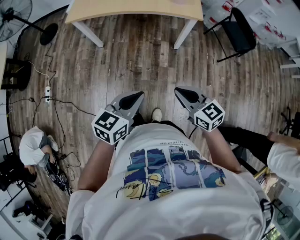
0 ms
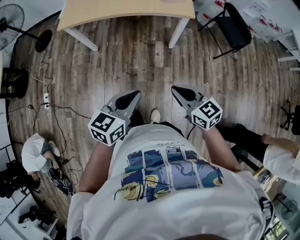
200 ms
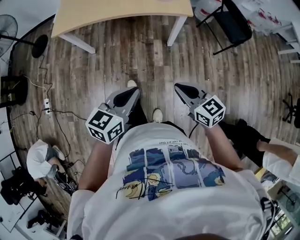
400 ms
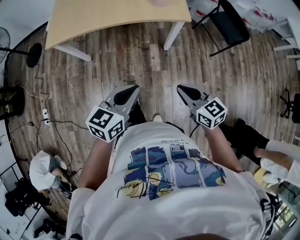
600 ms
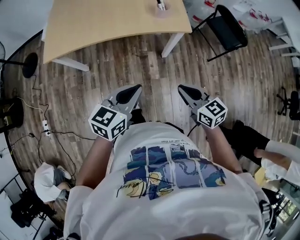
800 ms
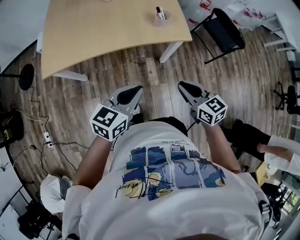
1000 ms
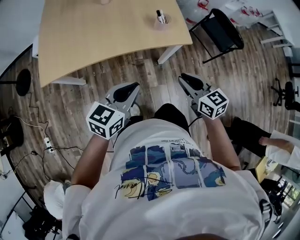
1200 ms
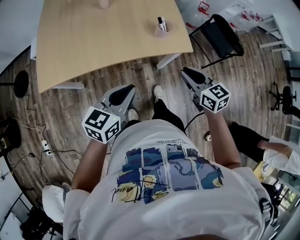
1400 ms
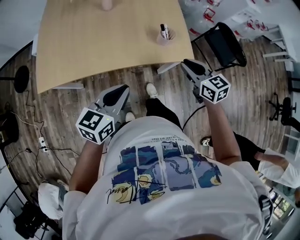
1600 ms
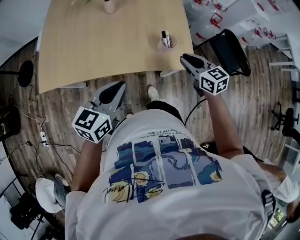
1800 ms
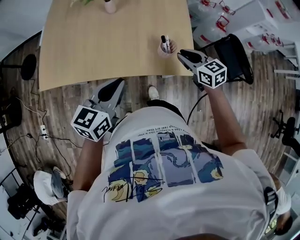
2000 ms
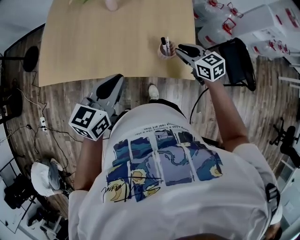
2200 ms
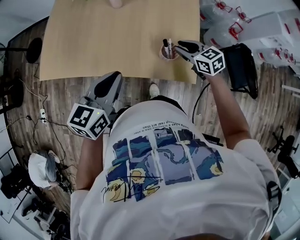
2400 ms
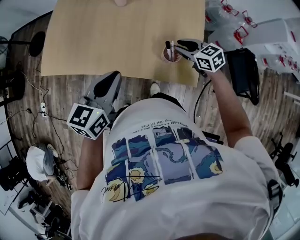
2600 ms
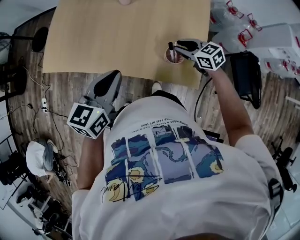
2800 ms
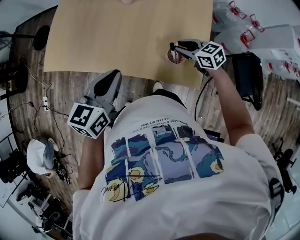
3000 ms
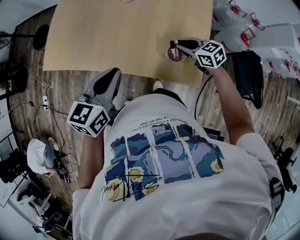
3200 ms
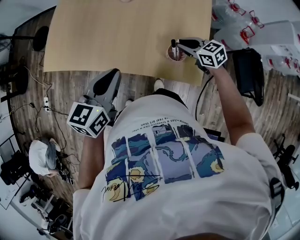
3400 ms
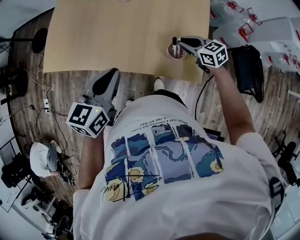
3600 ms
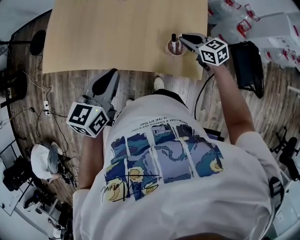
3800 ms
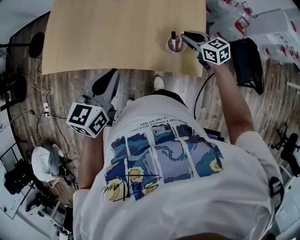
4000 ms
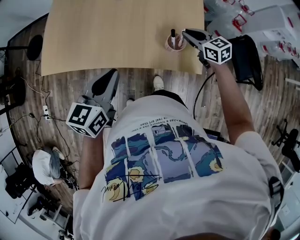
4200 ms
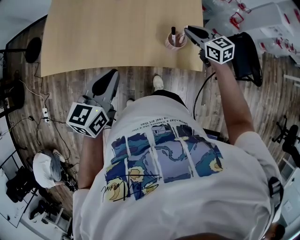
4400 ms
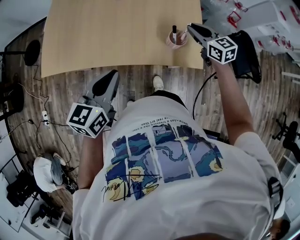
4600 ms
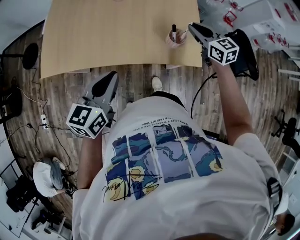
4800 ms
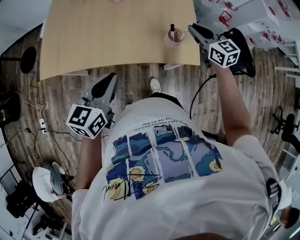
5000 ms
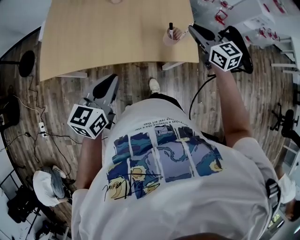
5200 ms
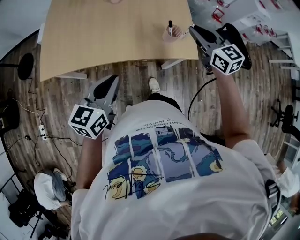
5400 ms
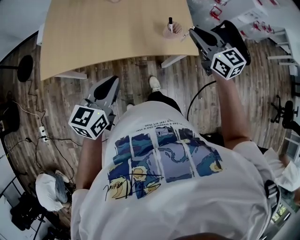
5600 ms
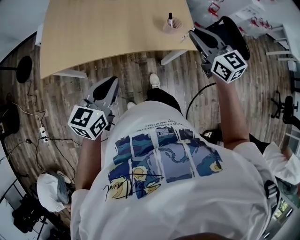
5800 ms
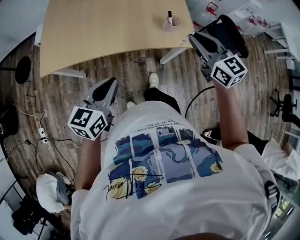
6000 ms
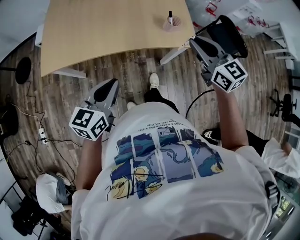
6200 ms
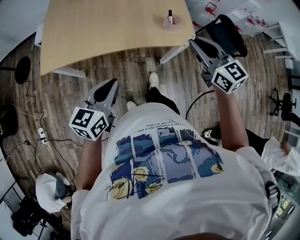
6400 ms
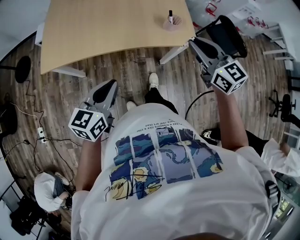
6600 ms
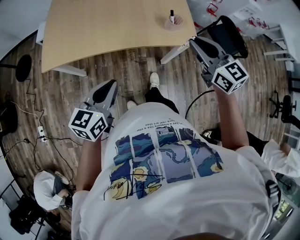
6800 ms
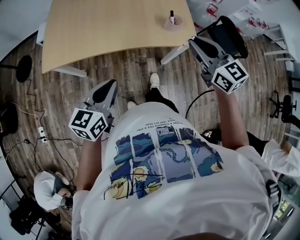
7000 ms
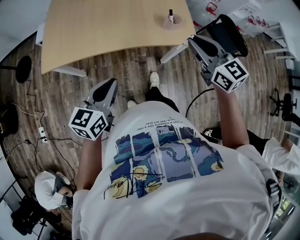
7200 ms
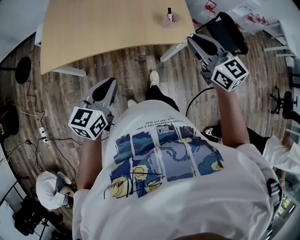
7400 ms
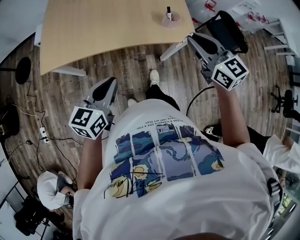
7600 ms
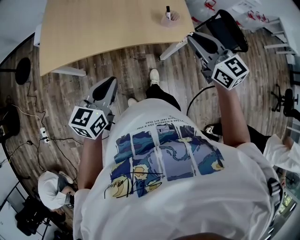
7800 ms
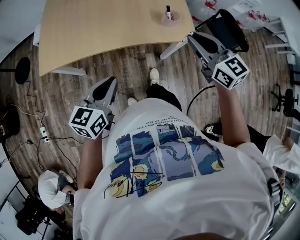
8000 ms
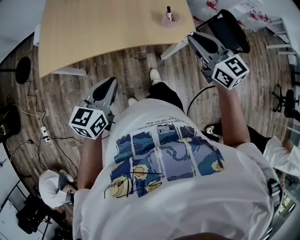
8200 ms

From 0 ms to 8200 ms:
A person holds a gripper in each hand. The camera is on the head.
From 0 ms to 1600 ms: The pair of grippers is taken forward, approximately 50 cm.
From 1600 ms to 3200 ms: The right gripper moves roughly 25 cm, and rotates approximately 40 degrees, while the left gripper moves approximately 15 cm, and swivels some 30 degrees.
From 3200 ms to 5000 ms: The right gripper heads upward and backward, covering some 15 cm, and rotates some 40 degrees. The left gripper travels to the left and backward by about 10 cm.
From 5000 ms to 6600 ms: The left gripper travels backward and to the left by roughly 15 cm, while the right gripper travels backward and upward by approximately 25 cm.
From 6600 ms to 8200 ms: There are only small adjustments of the grippers.

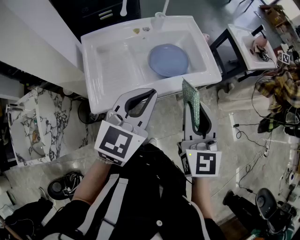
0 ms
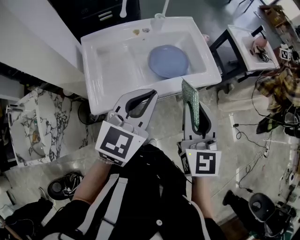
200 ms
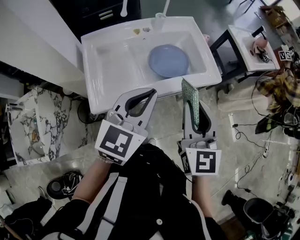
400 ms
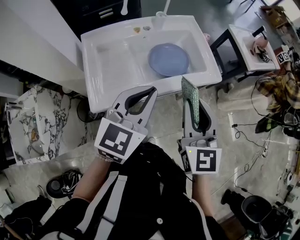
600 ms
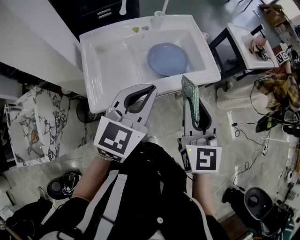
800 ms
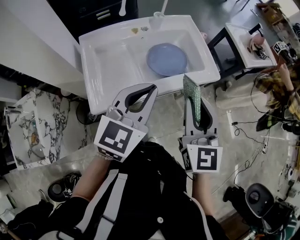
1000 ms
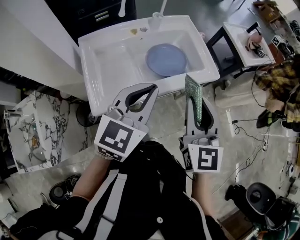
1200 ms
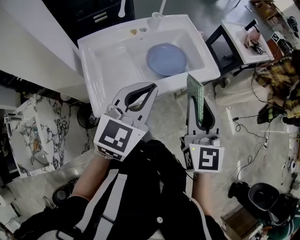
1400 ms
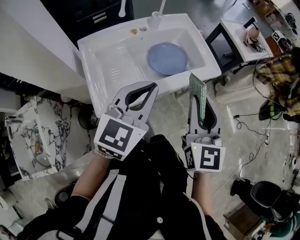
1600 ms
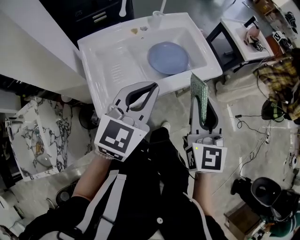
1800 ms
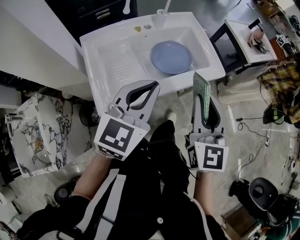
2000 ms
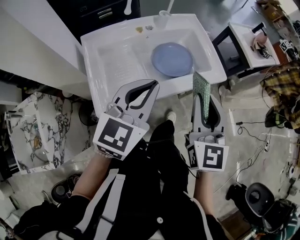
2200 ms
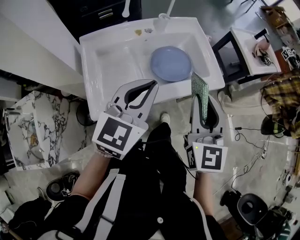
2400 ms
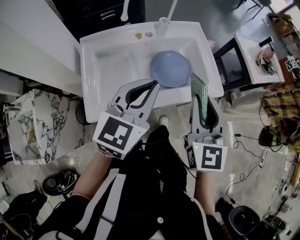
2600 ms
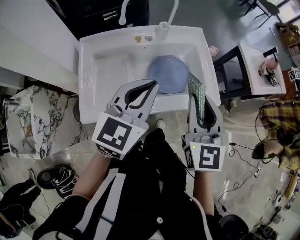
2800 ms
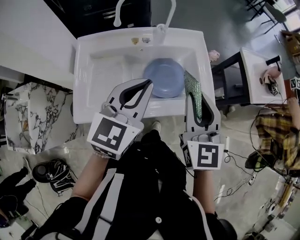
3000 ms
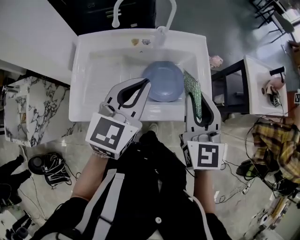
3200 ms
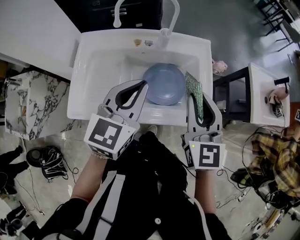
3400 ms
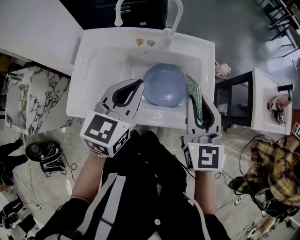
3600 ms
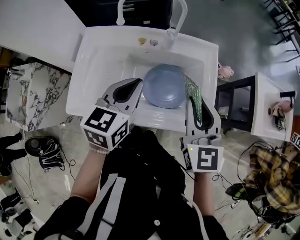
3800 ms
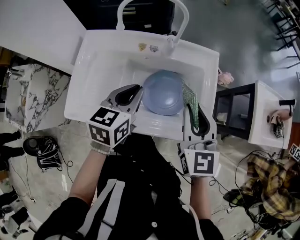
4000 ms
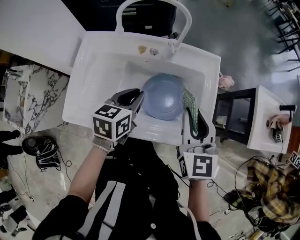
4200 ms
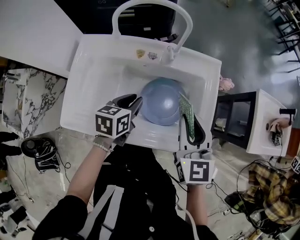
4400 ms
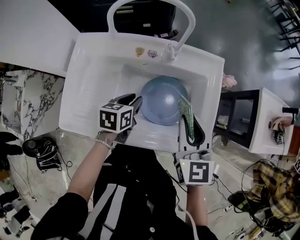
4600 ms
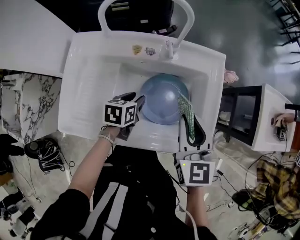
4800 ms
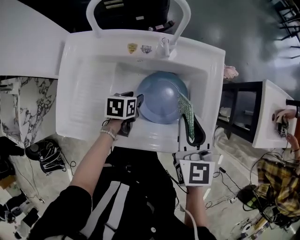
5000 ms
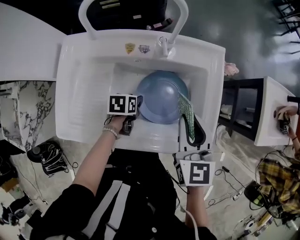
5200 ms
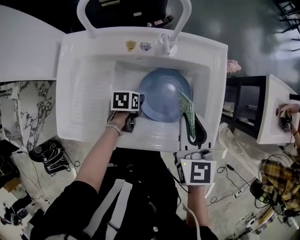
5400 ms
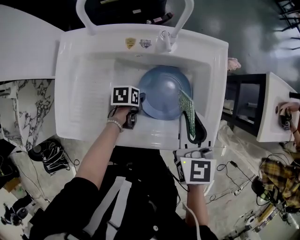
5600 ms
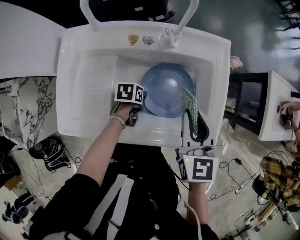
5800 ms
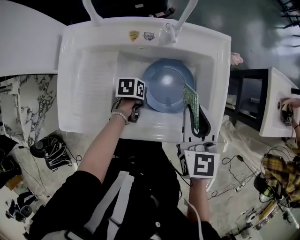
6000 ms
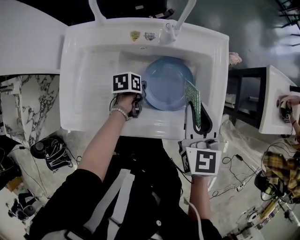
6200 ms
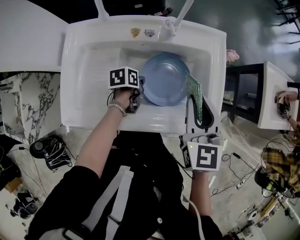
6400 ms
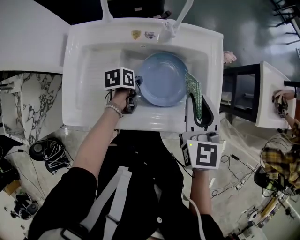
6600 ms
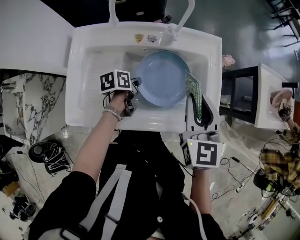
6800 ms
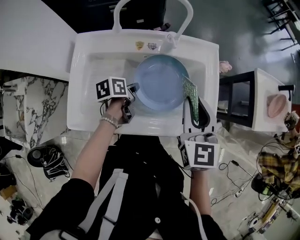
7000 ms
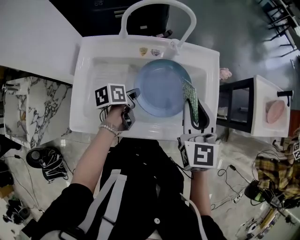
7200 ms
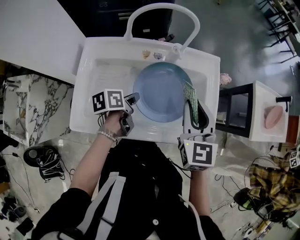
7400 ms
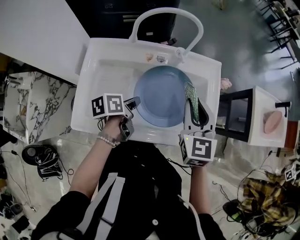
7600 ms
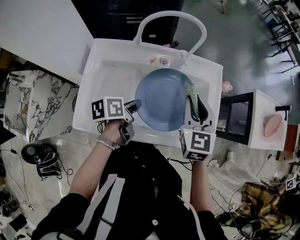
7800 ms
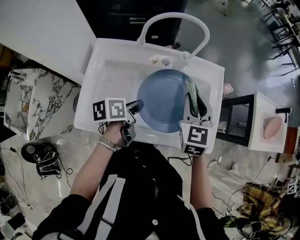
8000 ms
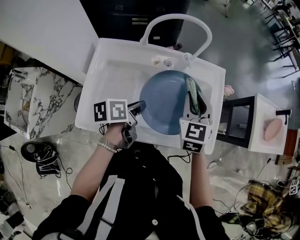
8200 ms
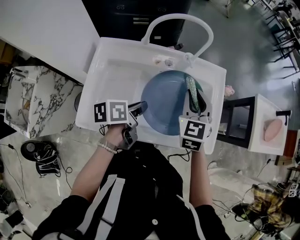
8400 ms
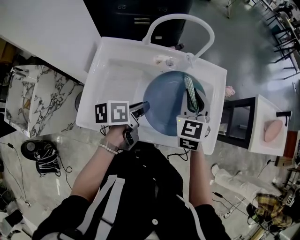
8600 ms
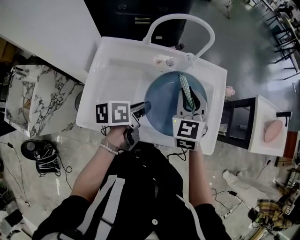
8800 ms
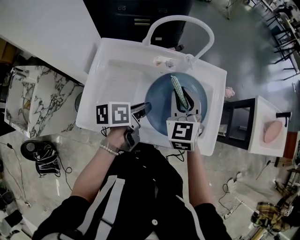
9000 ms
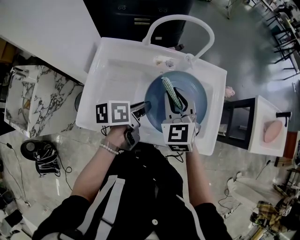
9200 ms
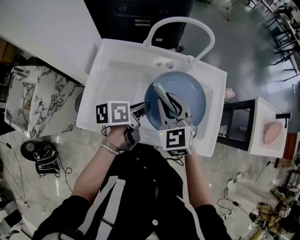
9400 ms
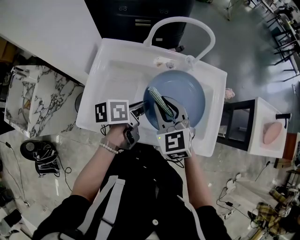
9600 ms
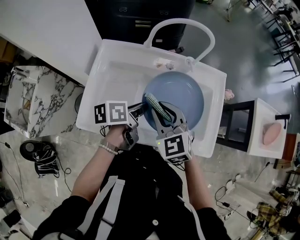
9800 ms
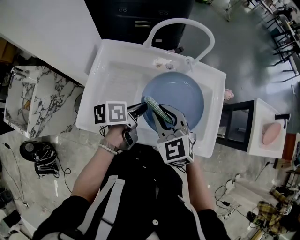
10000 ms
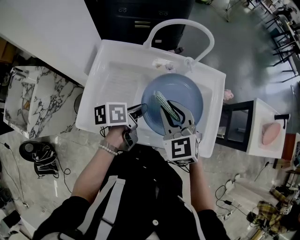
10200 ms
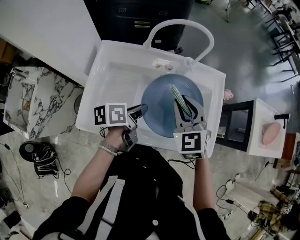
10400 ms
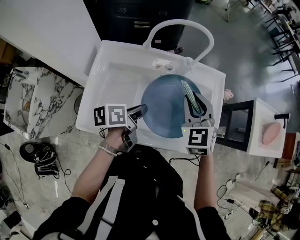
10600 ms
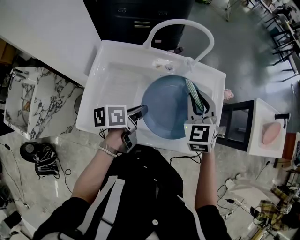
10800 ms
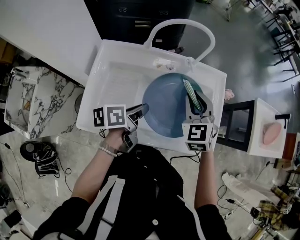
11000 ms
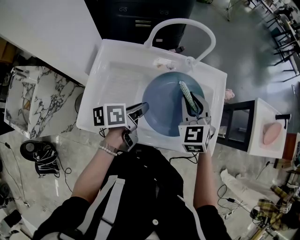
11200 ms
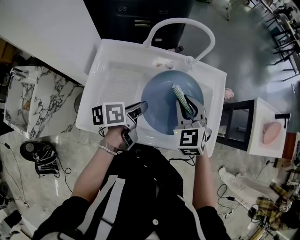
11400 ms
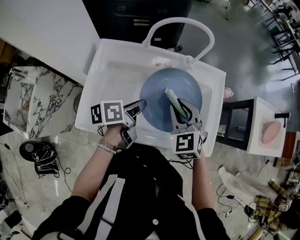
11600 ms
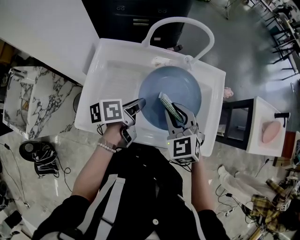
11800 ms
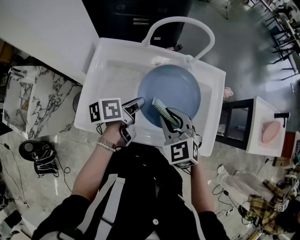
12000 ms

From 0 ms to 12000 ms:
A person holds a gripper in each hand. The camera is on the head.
From 0 ms to 1600 ms: The grippers move only a little.
From 1600 ms to 3000 ms: The grippers both shift forward by some 15 cm. The left gripper rotates some 20 degrees, while the right gripper turns by roughly 20 degrees.
From 3000 ms to 4400 ms: The left gripper moves downward and forward, about 25 cm, and turns by about 50 degrees. The right gripper heads forward and downward, covering approximately 15 cm.
From 4400 ms to 6000 ms: The left gripper is displaced downward by about 20 cm, rotates some 30 degrees, and opens, then closes once more. Meanwhile the right gripper moves downward, roughly 5 cm.
From 6000 ms to 7600 ms: The right gripper goes about 5 cm upward; the left gripper is displaced upward by approximately 20 cm, and turns by roughly 30 degrees.
From 7600 ms to 9000 ms: The right gripper heads to the left, covering some 10 cm. Meanwhile the left gripper heads upward, covering approximately 5 cm.
From 9000 ms to 10400 ms: The right gripper travels backward and back again, some 10 cm each way.
From 10400 ms to 12000 ms: The right gripper shifts approximately 5 cm backward.

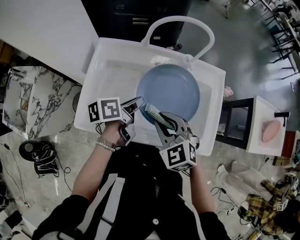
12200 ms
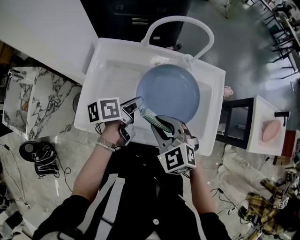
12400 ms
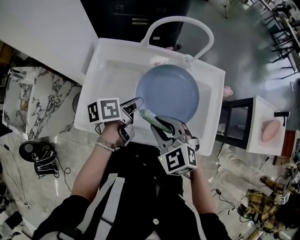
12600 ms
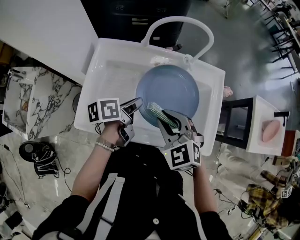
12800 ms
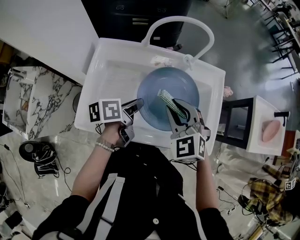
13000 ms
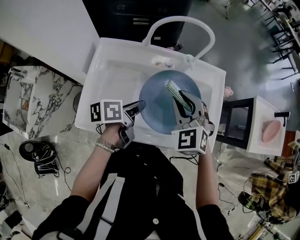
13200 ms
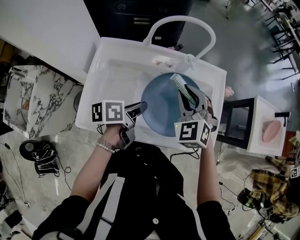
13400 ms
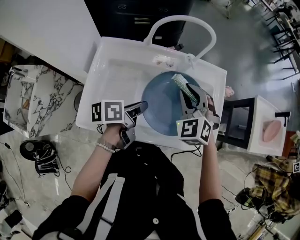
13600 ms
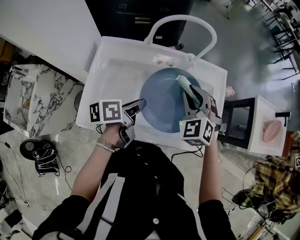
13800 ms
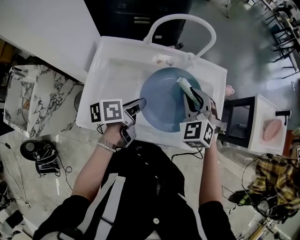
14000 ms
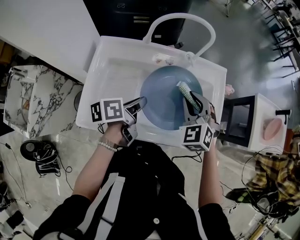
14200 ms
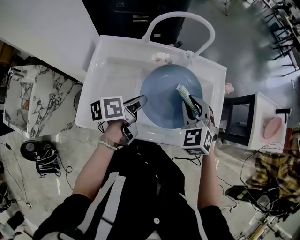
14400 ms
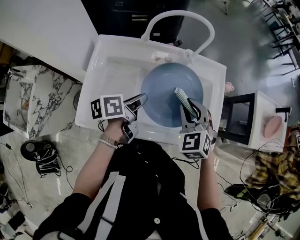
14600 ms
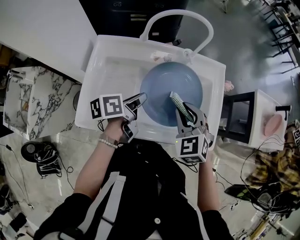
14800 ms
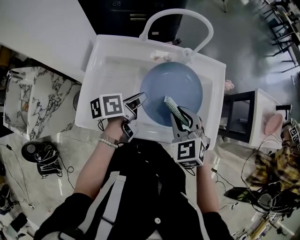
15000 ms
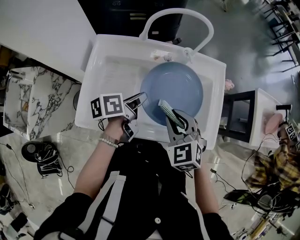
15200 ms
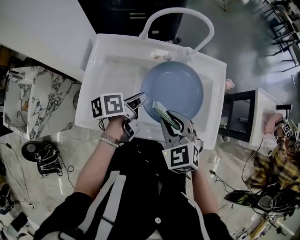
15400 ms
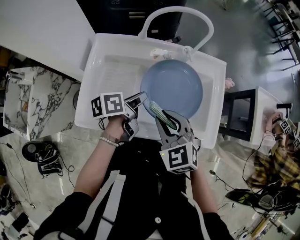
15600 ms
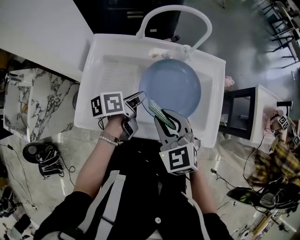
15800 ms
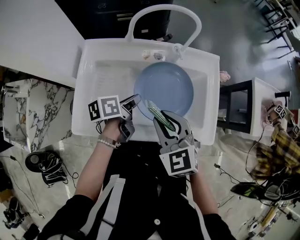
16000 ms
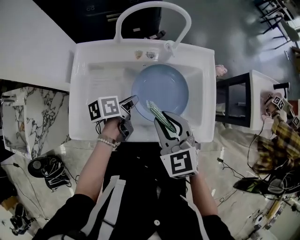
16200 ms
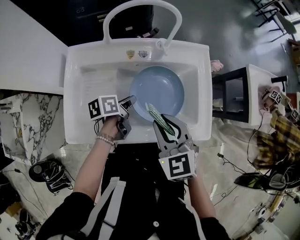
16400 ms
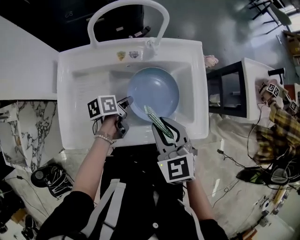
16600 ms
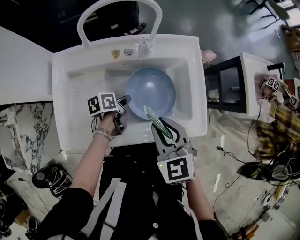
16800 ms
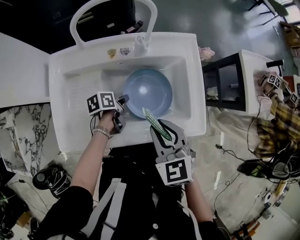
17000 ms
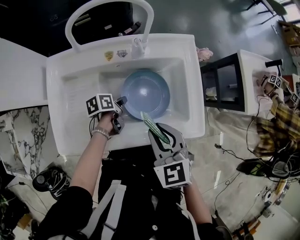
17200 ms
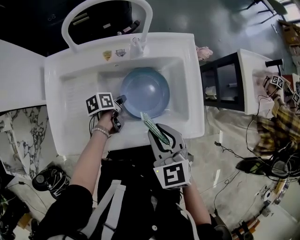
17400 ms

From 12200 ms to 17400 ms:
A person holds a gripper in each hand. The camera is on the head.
From 12200 ms to 14000 ms: The right gripper heads forward and to the right, covering about 15 cm, and turns by roughly 30 degrees.
From 14000 ms to 15600 ms: The right gripper is displaced backward and to the left by some 15 cm, and turns by approximately 30 degrees.
From 15600 ms to 17400 ms: The right gripper travels to the right by about 10 cm, and turns by some 20 degrees, while the left gripper heads downward, covering roughly 20 cm, and changes its angle by approximately 30 degrees.
